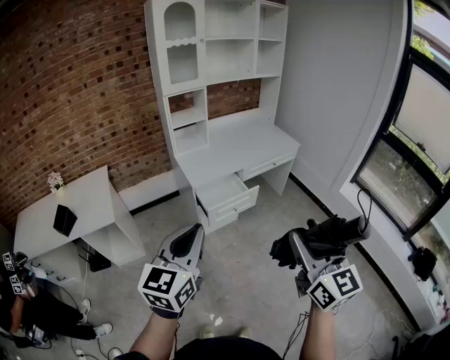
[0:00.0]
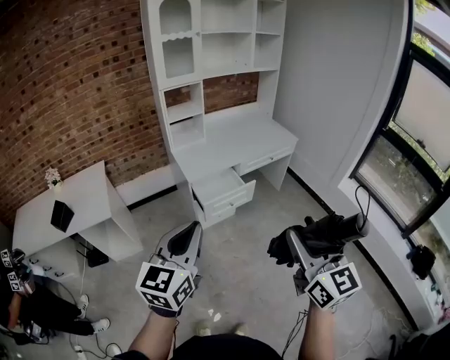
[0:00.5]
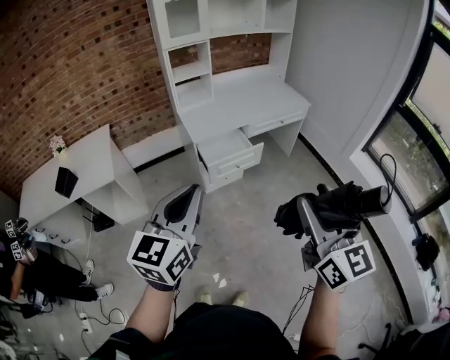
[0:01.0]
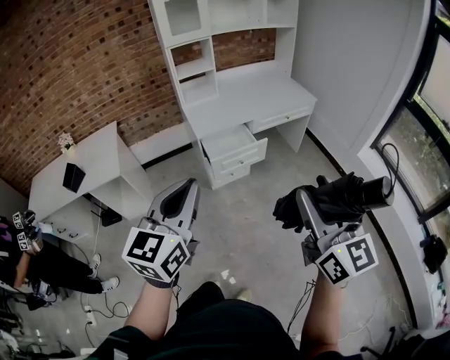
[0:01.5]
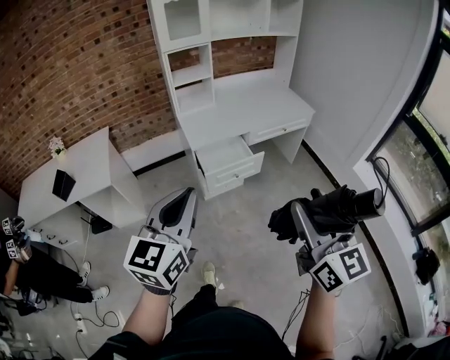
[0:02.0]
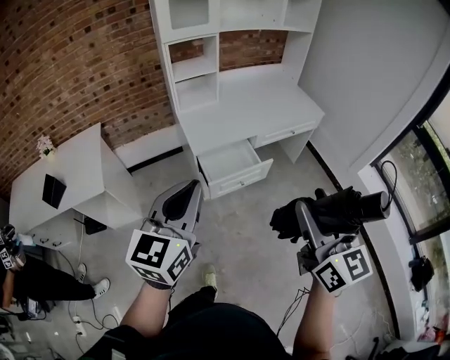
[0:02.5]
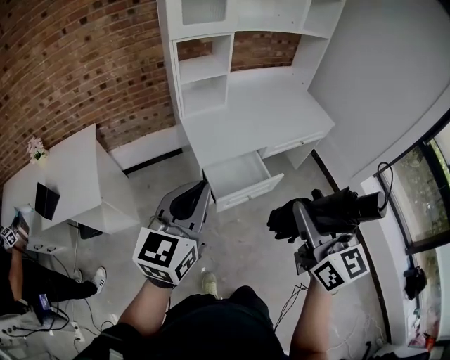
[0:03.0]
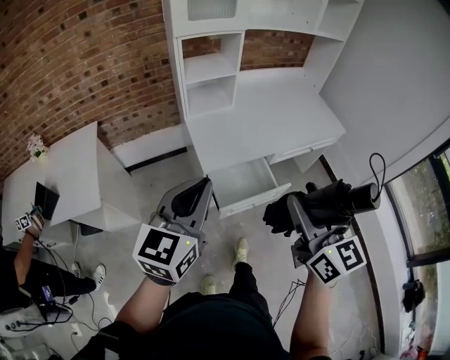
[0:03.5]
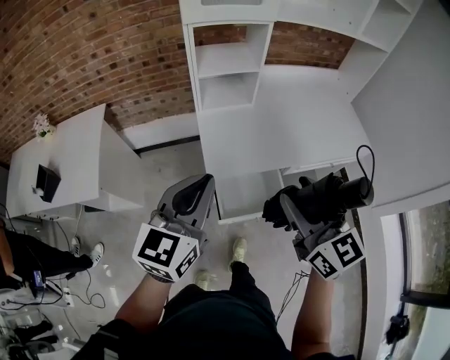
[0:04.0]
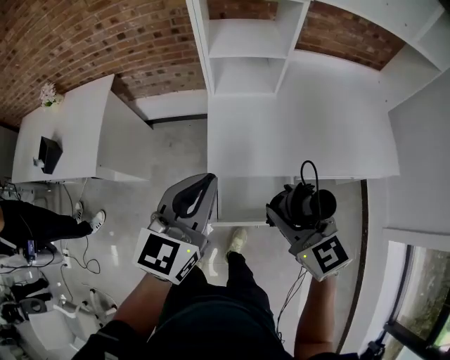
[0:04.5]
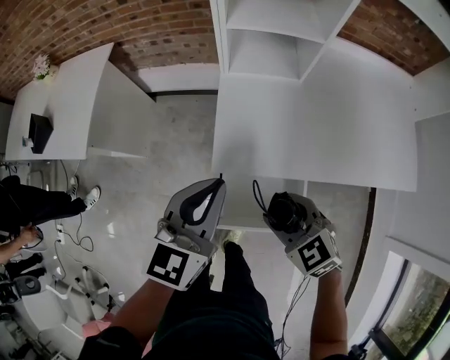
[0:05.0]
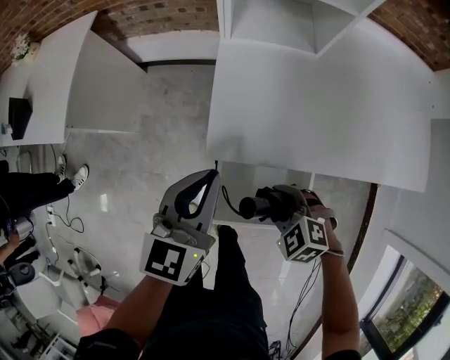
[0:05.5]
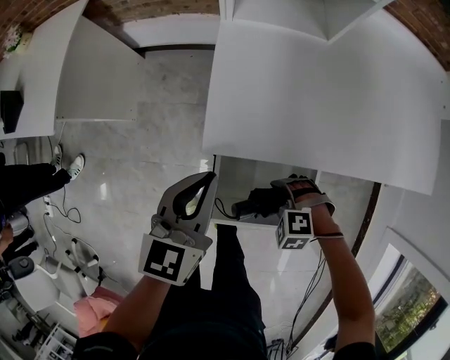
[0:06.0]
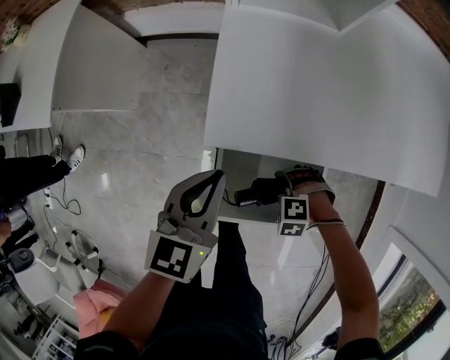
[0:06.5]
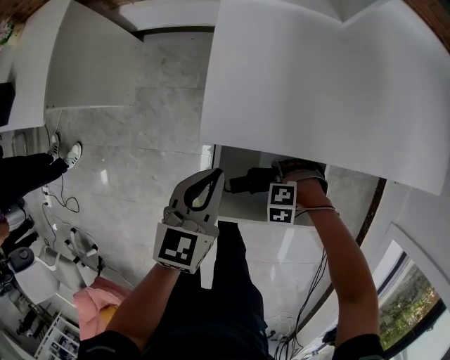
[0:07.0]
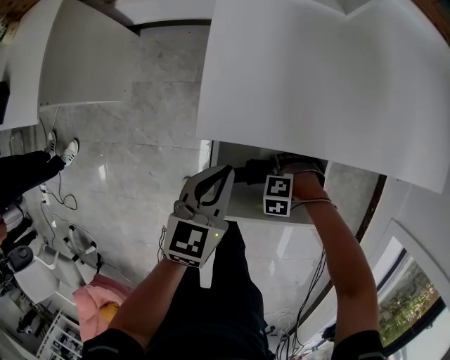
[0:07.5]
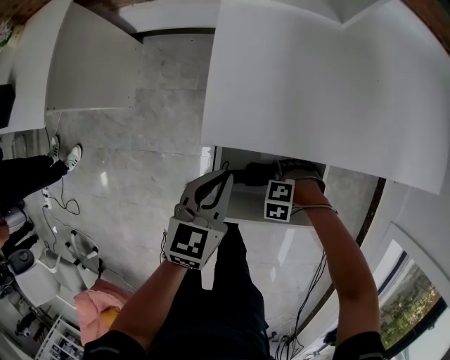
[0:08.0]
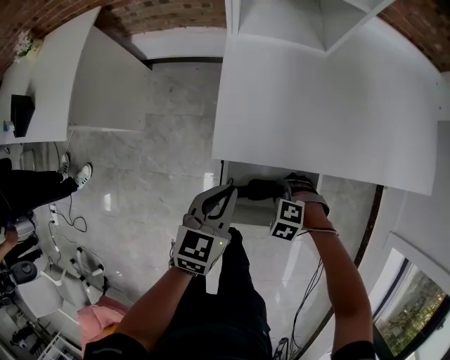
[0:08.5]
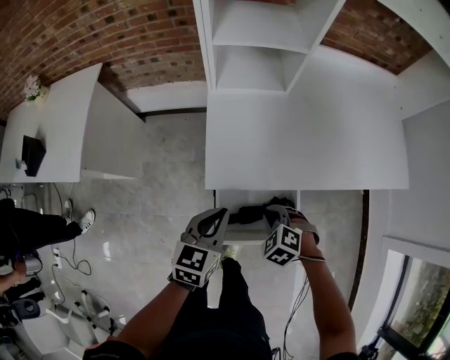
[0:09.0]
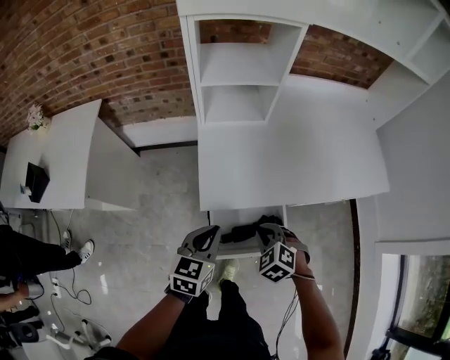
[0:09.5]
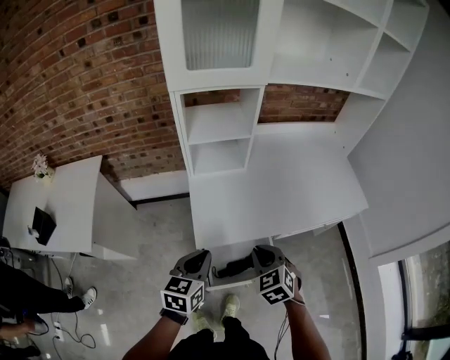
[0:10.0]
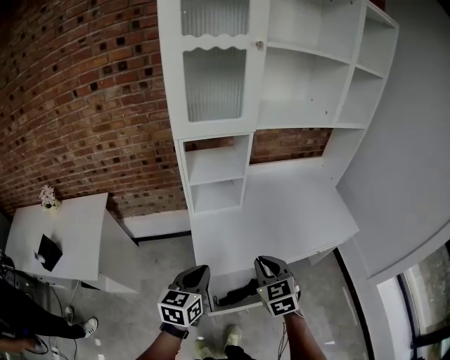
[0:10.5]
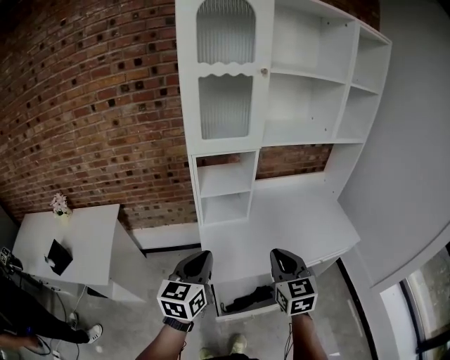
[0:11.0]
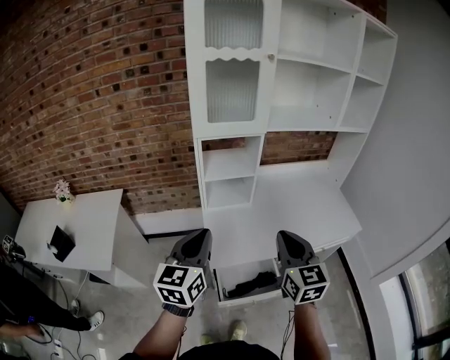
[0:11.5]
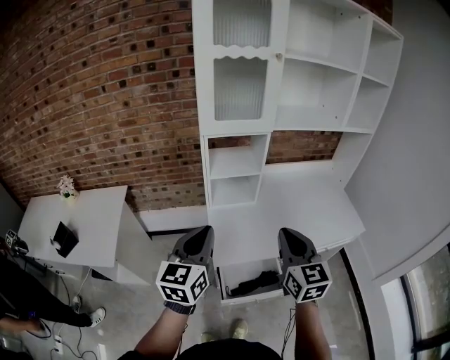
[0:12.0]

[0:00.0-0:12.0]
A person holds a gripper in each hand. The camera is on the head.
0:00.0 to 0:02.0: The right gripper goes about 5 cm forward. The left gripper changes place by roughly 5 cm.
0:02.0 to 0:04.0: Both grippers are carried forward, roughly 50 cm. The right gripper changes its angle by approximately 20 degrees.
0:04.0 to 0:06.0: The left gripper travels downward by approximately 30 cm, and swivels some 30 degrees. Meanwhile the right gripper shifts some 50 cm downward, and tilts its fingers some 70 degrees downward.
0:06.0 to 0:08.0: The two grippers go approximately 10 cm downward.
0:08.0 to 0:10.0: The left gripper is displaced upward by about 25 cm, while the right gripper travels upward by some 40 cm, tips its fingers upward by about 40 degrees, and closes up.
0:10.0 to 0:12.0: Both grippers travel together upward, approximately 25 cm. The right gripper tilts its fingers some 40 degrees upward, while the left gripper swivels roughly 30 degrees.

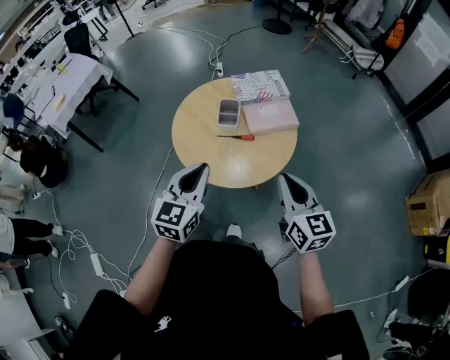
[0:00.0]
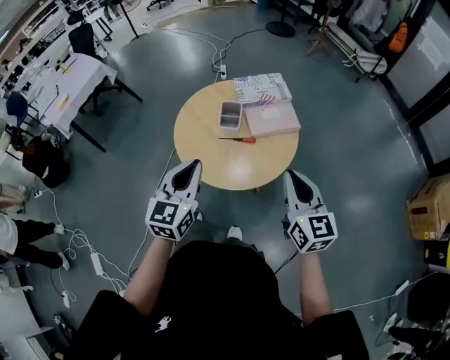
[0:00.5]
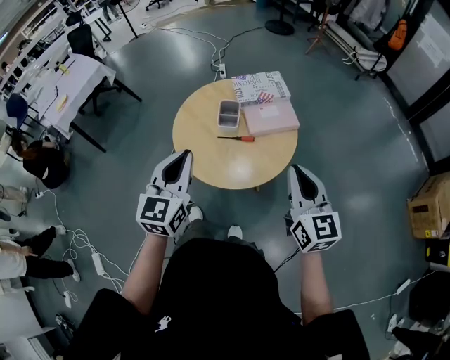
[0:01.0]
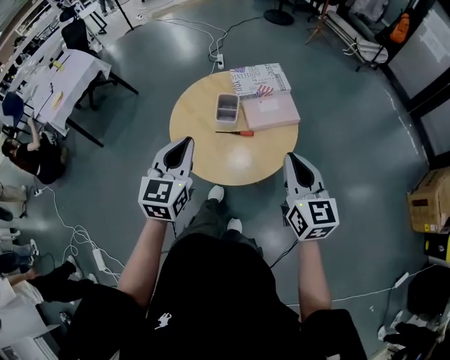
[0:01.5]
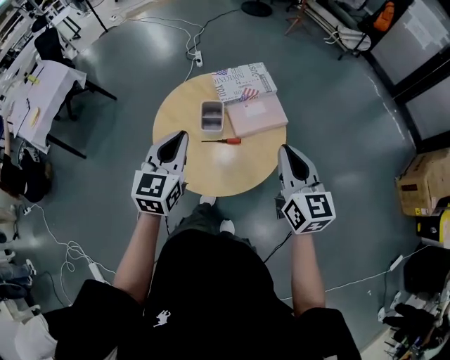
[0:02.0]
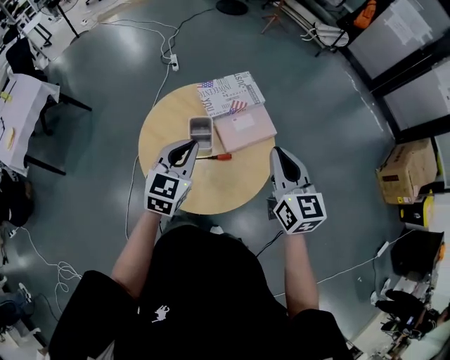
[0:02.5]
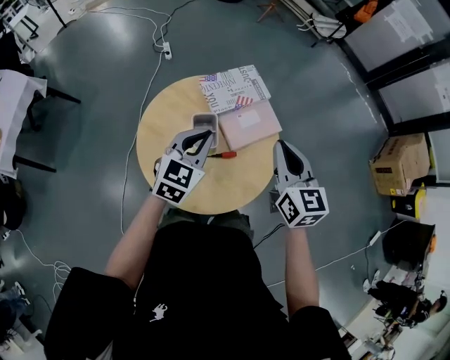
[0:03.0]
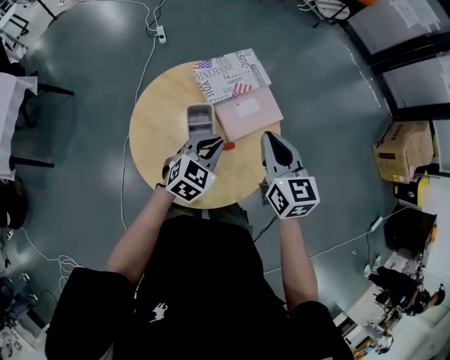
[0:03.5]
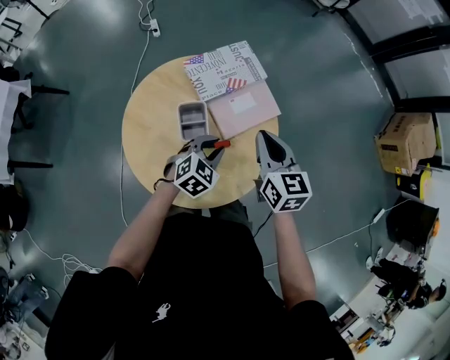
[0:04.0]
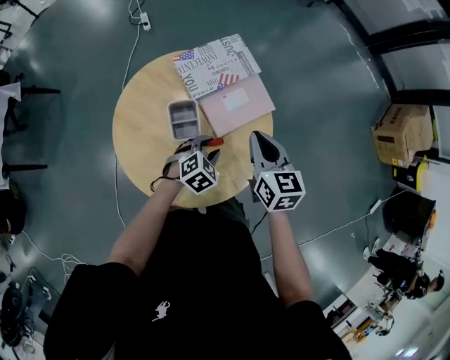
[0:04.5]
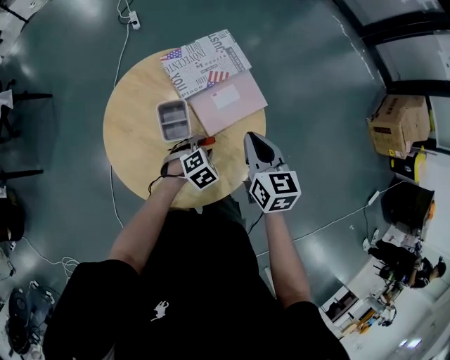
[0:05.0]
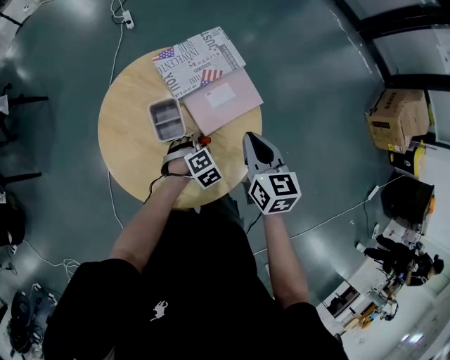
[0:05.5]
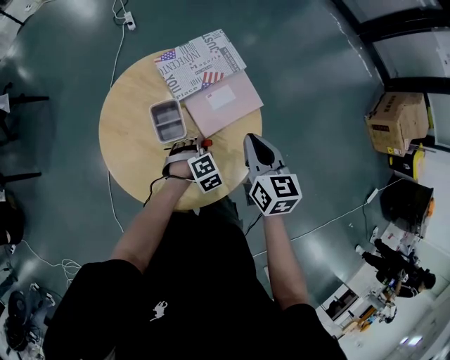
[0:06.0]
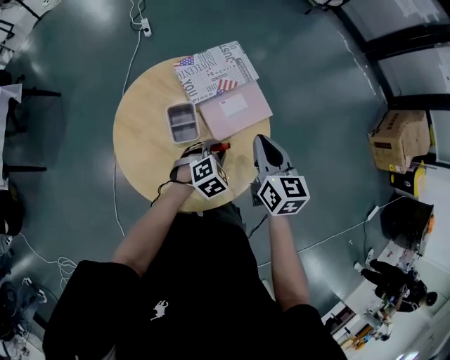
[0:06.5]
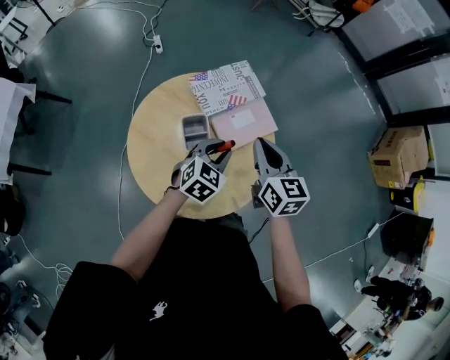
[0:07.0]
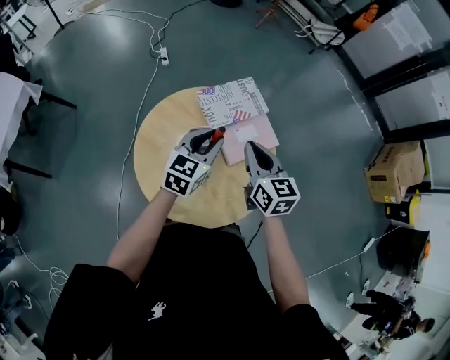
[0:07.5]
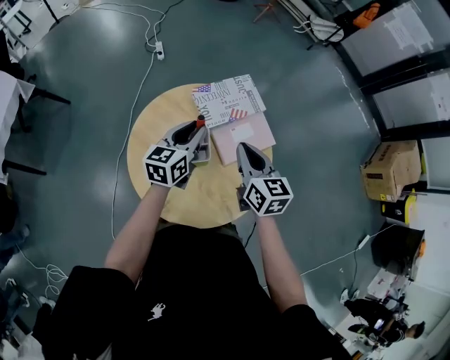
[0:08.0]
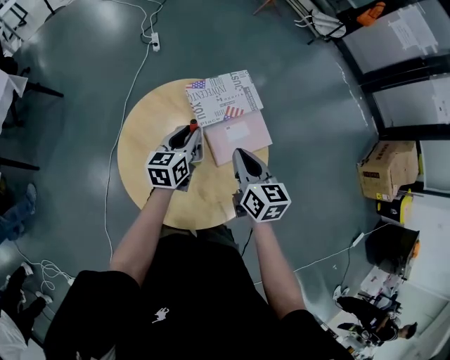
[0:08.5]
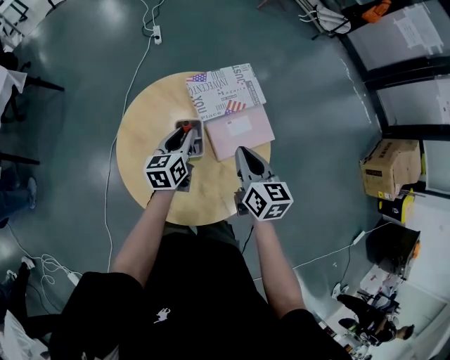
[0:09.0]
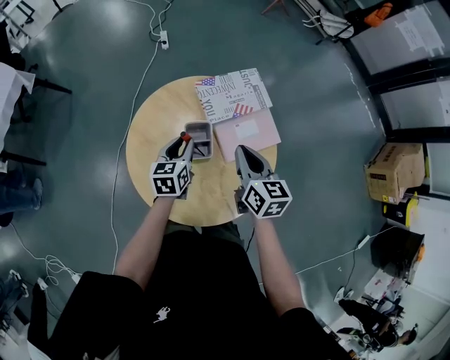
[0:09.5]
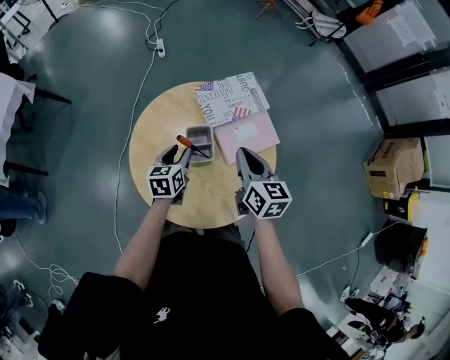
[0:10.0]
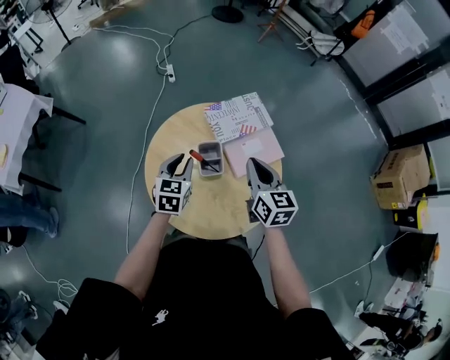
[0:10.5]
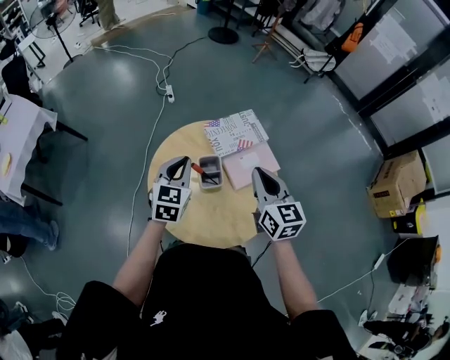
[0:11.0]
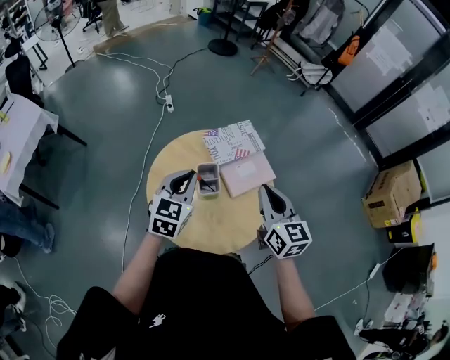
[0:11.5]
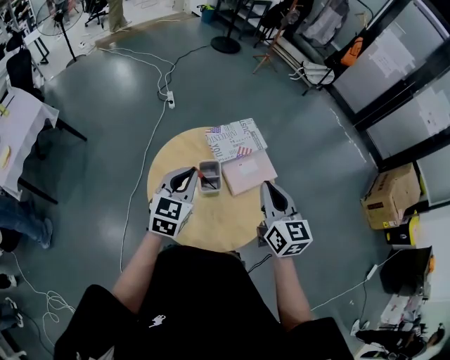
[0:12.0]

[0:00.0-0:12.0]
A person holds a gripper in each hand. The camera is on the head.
0:00.0 to 0:02.0: Both grippers move forward, roughly 15 cm.
0:02.0 to 0:04.0: The left gripper heads downward, forward and to the right, covering about 30 cm, rotates roughly 50 degrees, and opens up. Meanwhile the right gripper shifts about 20 cm forward, downward and to the left.
0:04.0 to 0:06.0: The left gripper heads downward, covering about 10 cm, and turns by approximately 30 degrees.
0:06.0 to 0:08.0: The right gripper travels to the left by some 10 cm. Meanwhile the left gripper travels upward, to the left and forward by about 30 cm, and angles its fingers upward, by roughly 50 degrees.
0:08.0 to 0:10.0: The left gripper is displaced downward by about 15 cm, and rotates approximately 20 degrees.
0:10.0 to 0:12.0: The right gripper heads upward and backward, covering roughly 15 cm, while the left gripper heads upward, covering roughly 20 cm, changes its angle by approximately 30 degrees, and closes.

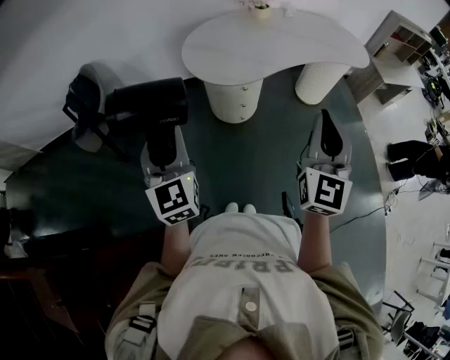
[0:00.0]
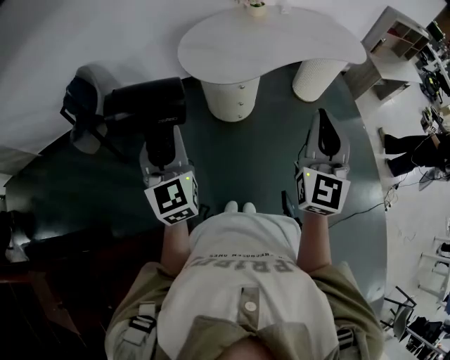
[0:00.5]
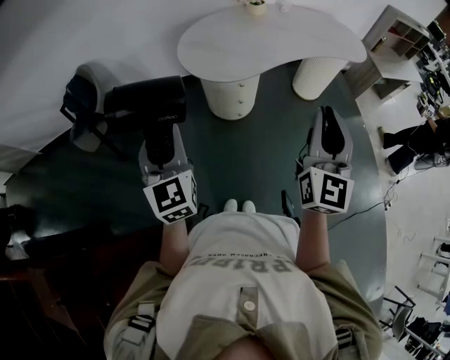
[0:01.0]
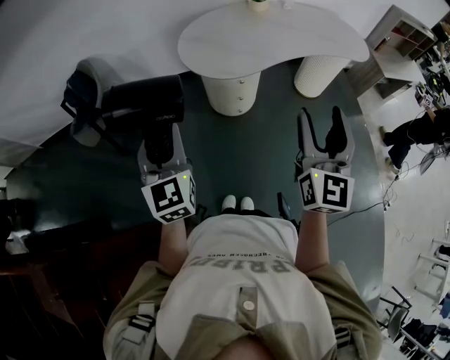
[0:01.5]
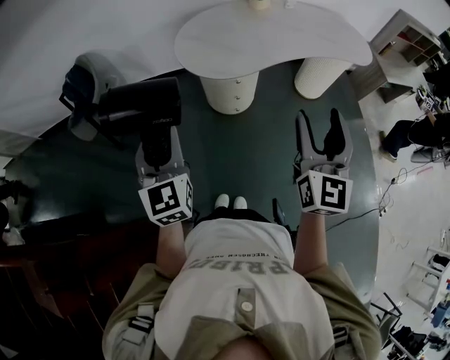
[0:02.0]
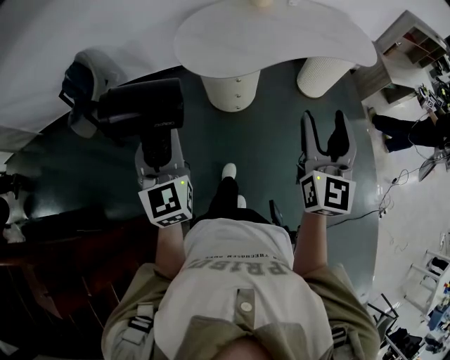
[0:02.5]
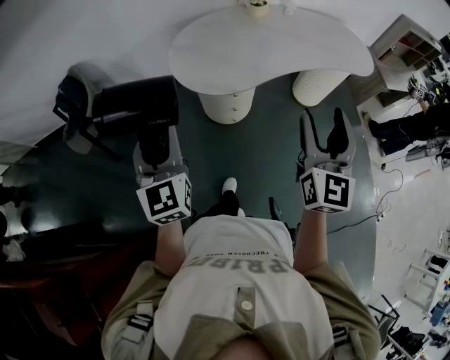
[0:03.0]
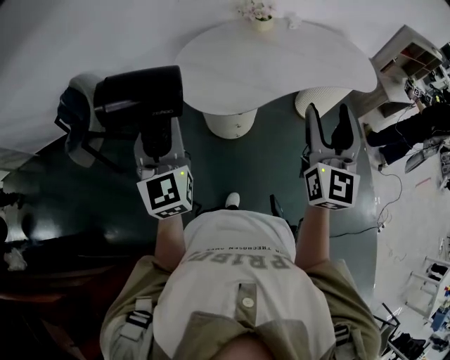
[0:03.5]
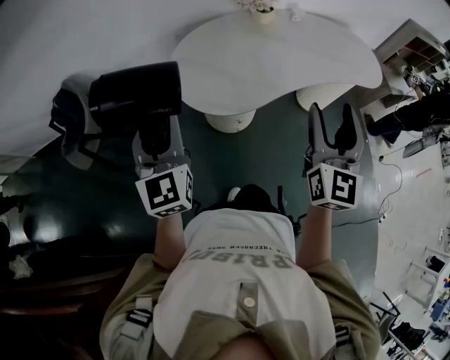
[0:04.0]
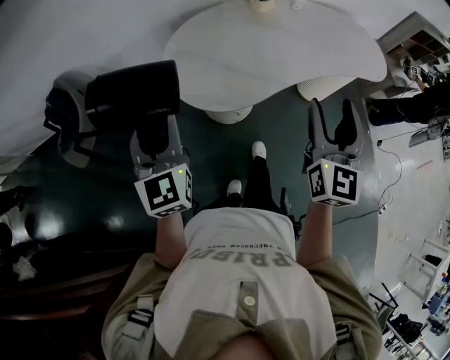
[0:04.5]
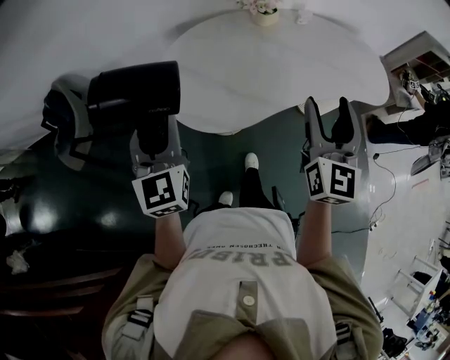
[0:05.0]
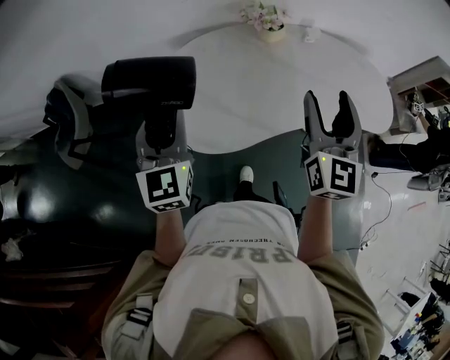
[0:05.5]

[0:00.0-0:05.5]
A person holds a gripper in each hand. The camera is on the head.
0:00.0 to 0:02.0: The two grippers go some 5 cm to the right. The right gripper opens its fingers.
0:02.0 to 0:03.5: The grippers both shift forward by some 15 cm.
0:03.5 to 0:05.5: The grippers both shift forward by approximately 25 cm.
